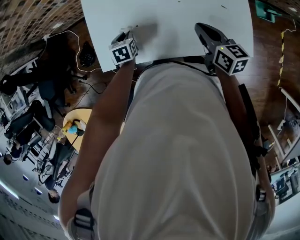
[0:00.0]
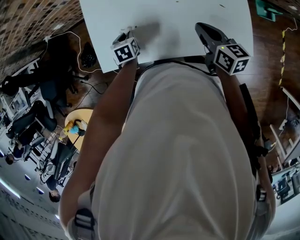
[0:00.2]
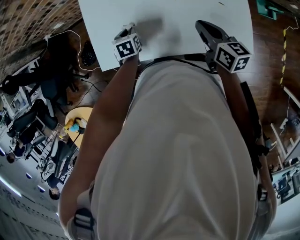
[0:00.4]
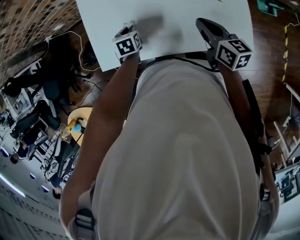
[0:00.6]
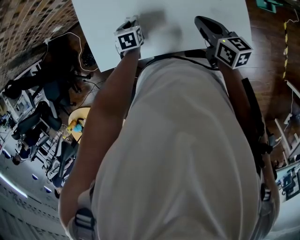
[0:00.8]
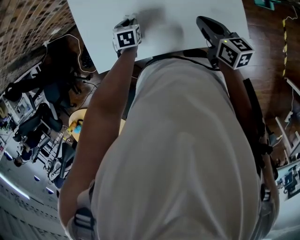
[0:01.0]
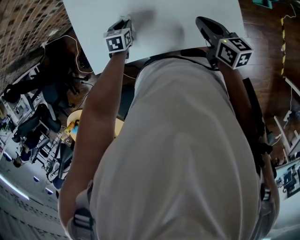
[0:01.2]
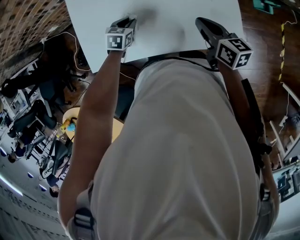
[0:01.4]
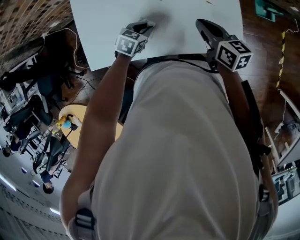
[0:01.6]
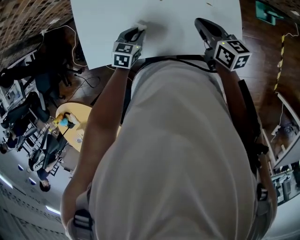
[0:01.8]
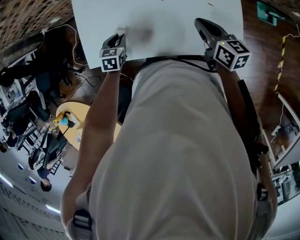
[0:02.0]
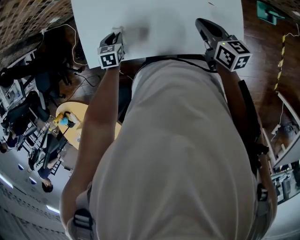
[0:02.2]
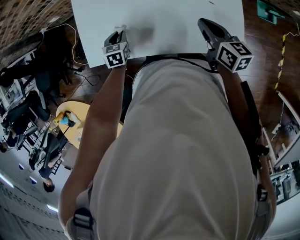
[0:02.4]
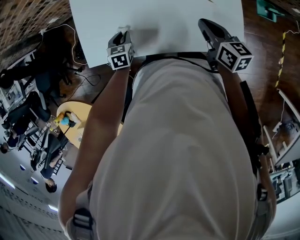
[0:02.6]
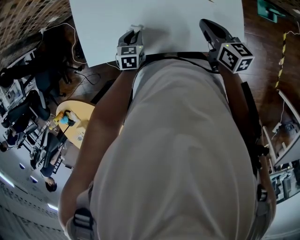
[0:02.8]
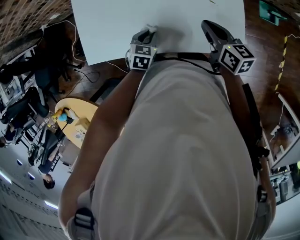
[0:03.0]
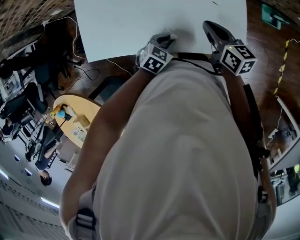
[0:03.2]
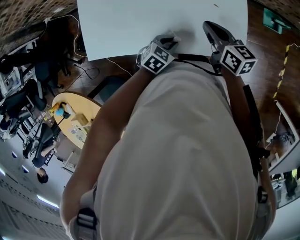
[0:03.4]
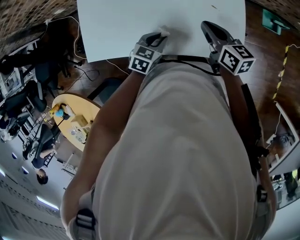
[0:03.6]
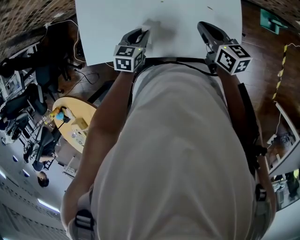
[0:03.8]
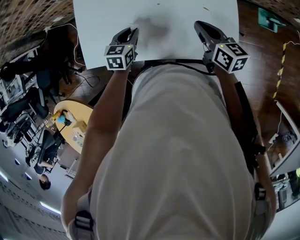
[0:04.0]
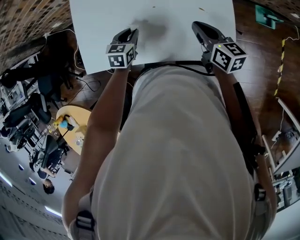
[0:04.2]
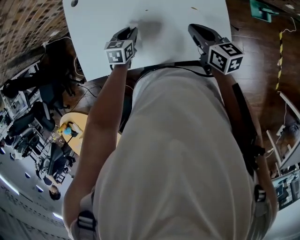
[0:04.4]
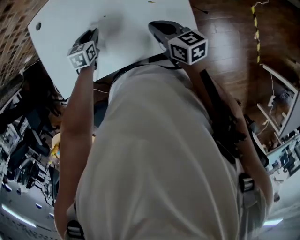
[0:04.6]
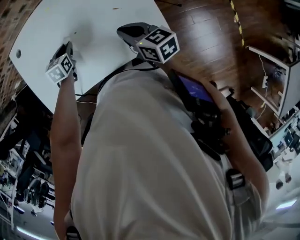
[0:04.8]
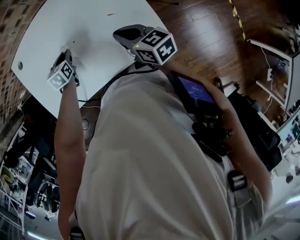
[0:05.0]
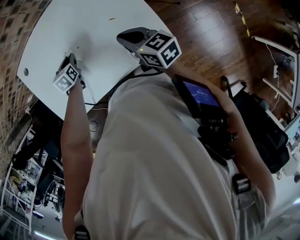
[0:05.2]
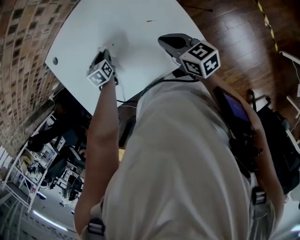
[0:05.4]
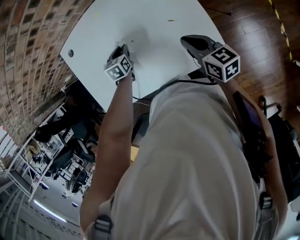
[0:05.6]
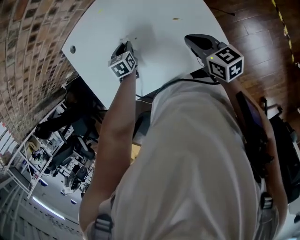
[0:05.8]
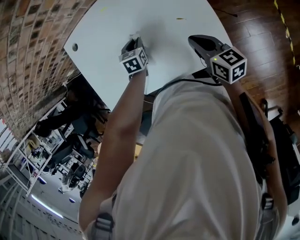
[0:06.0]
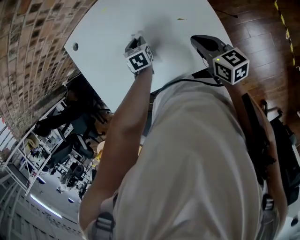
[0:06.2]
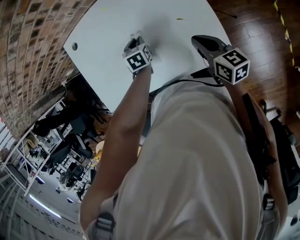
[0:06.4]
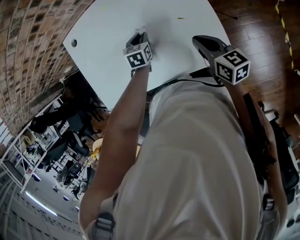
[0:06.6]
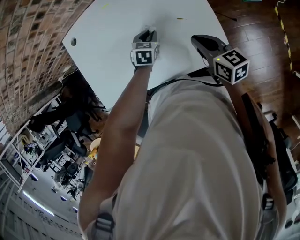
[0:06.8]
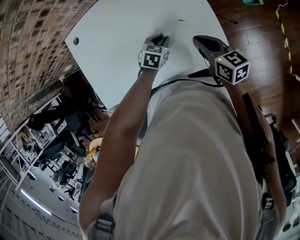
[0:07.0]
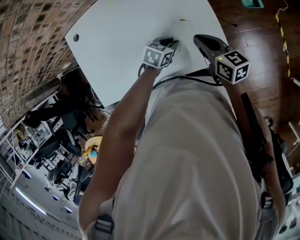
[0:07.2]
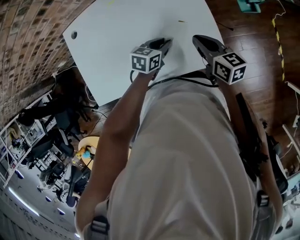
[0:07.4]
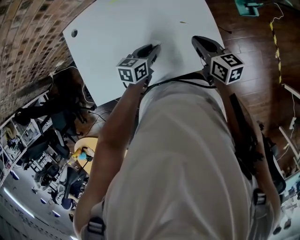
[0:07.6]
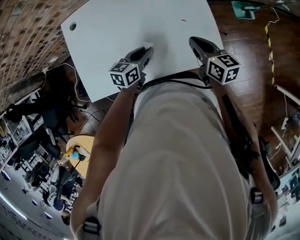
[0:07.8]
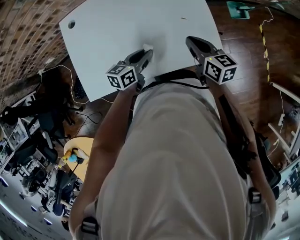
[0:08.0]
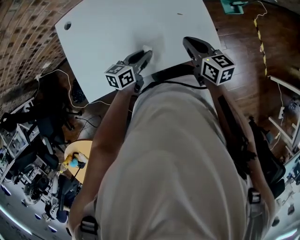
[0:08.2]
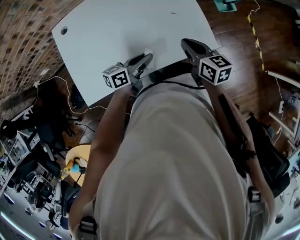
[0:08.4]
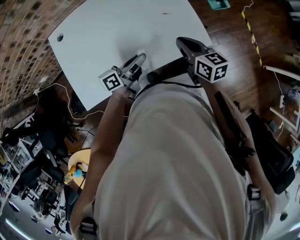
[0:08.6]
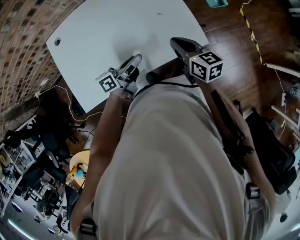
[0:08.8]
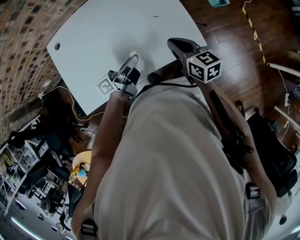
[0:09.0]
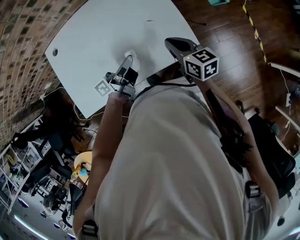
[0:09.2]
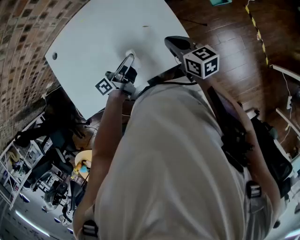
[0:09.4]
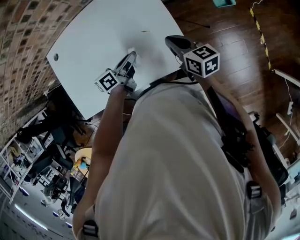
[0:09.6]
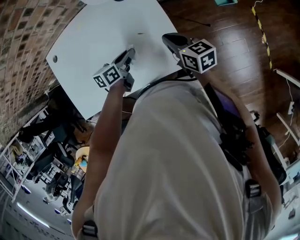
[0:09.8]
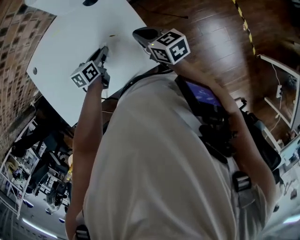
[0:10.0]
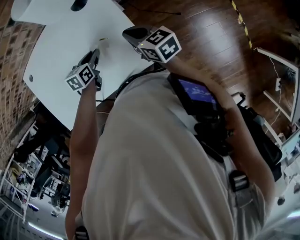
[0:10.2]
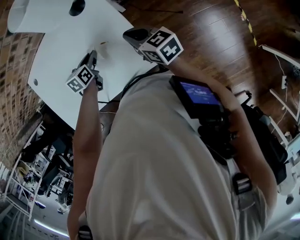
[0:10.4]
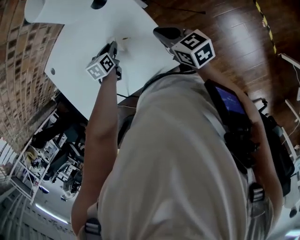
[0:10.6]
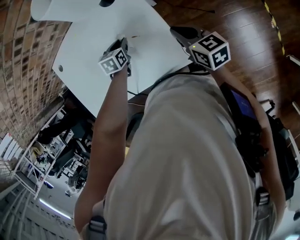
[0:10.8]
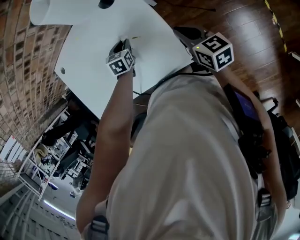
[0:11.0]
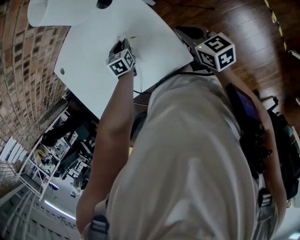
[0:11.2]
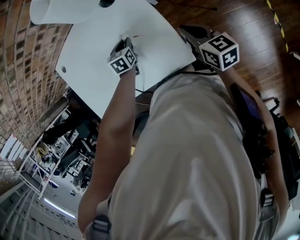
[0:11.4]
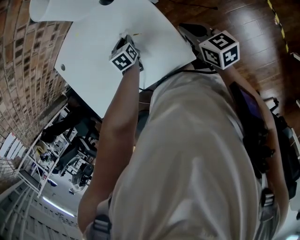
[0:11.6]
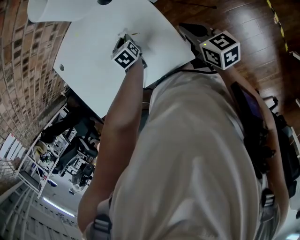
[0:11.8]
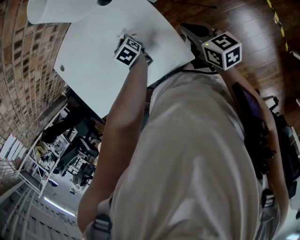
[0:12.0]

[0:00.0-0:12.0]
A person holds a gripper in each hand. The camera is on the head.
0:00.0 to 0:01.6: The right gripper moves roughly 10 cm, while the left gripper ends up roughly 20 cm from where it was, and changes its angle by roughly 40 degrees.
0:03.0 to 0:04.4: The left gripper heads forward, covering roughly 10 cm.
0:04.4 to 0:06.0: The left gripper is displaced to the right and forward by about 10 cm.
0:06.0 to 0:07.6: The left gripper changes place by roughly 15 cm, and rotates some 30 degrees.
0:07.6 to 0:09.0: The right gripper is displaced backward by roughly 10 cm. The left gripper is displaced backward and upward by approximately 10 cm, and angles its fingers upward, by roughly 40 degrees.
0:09.0 to 0:10.4: The right gripper moves forward and to the right, approximately 20 cm. Meanwhile the left gripper is displaced forward and downward by roughly 20 cm, and tilts its fingers some 60 degrees downward.
0:10.4 to 0:12.0: The left gripper rotates roughly 30 degrees. The right gripper moves to the right, roughly 5 cm.

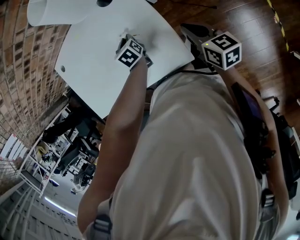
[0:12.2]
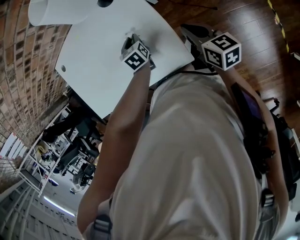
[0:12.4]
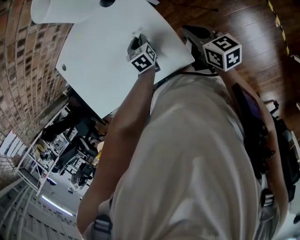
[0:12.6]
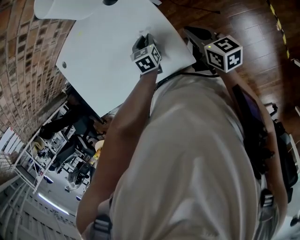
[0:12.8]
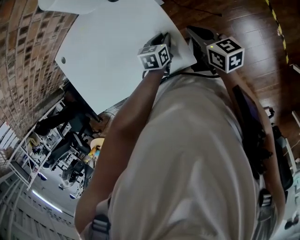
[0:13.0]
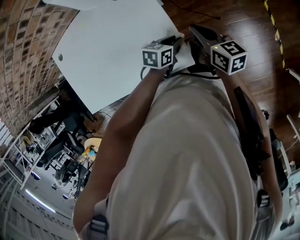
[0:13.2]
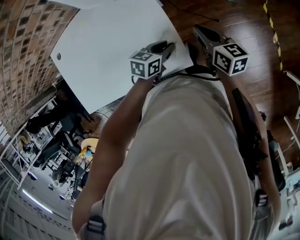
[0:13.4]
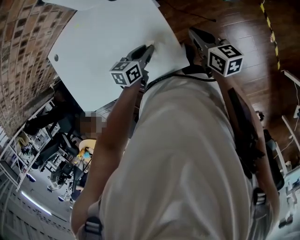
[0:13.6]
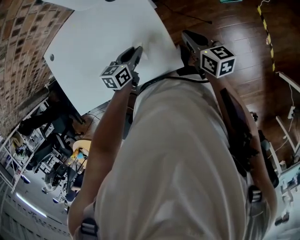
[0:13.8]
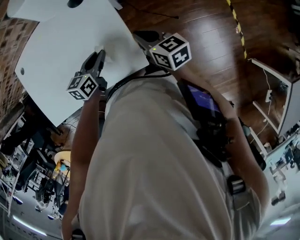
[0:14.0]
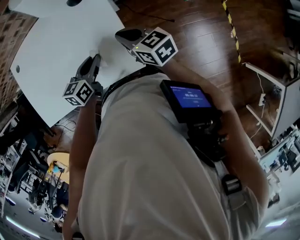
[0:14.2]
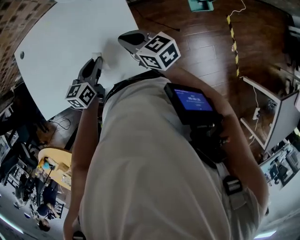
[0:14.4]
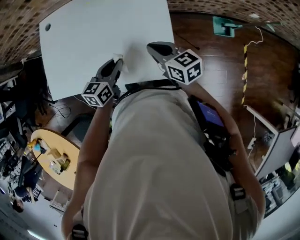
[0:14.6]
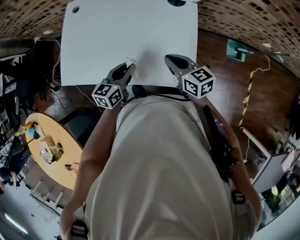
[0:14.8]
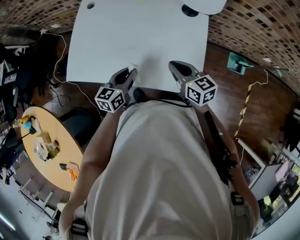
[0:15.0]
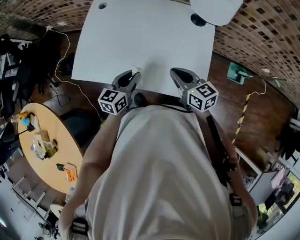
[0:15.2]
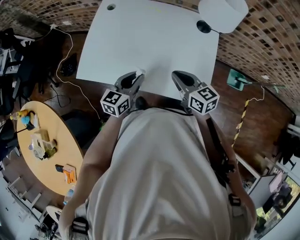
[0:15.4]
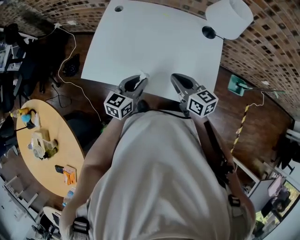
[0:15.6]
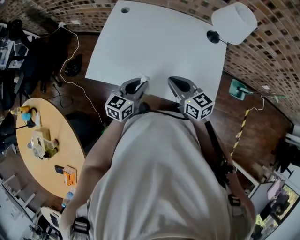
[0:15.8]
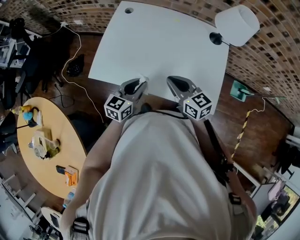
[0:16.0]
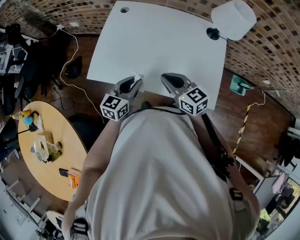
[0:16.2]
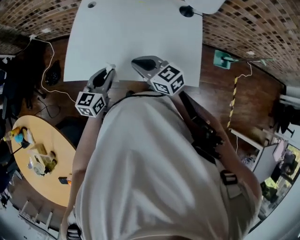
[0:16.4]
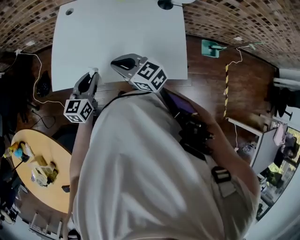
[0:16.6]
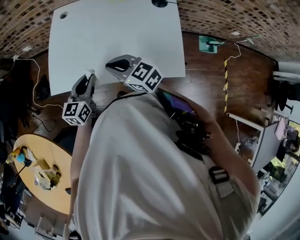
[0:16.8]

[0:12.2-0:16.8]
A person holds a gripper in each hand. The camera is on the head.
0:12.2 to 0:13.8: The left gripper changes its angle by roughly 40 degrees.
0:13.8 to 0:15.2: The left gripper shifts by about 25 cm, and turns by roughly 30 degrees; the right gripper moves some 30 cm, and changes its angle by some 40 degrees.
0:15.2 to 0:16.8: The left gripper shifts about 10 cm to the left; the right gripper shifts roughly 20 cm to the left.

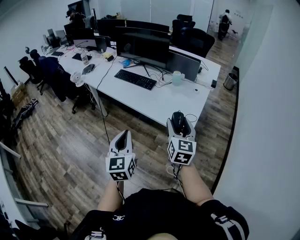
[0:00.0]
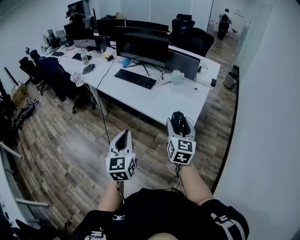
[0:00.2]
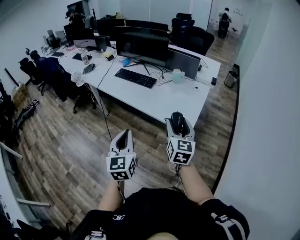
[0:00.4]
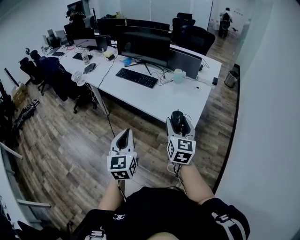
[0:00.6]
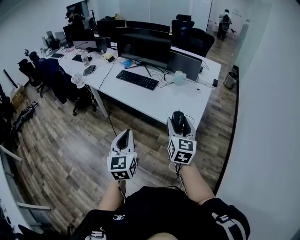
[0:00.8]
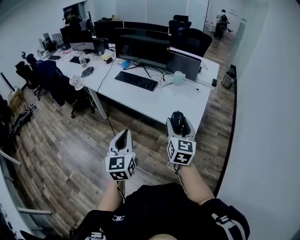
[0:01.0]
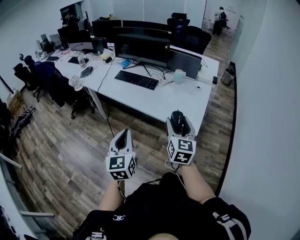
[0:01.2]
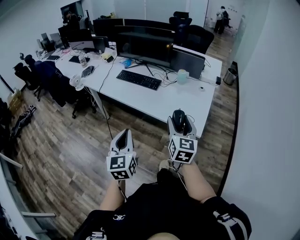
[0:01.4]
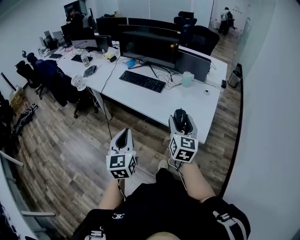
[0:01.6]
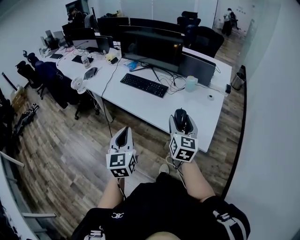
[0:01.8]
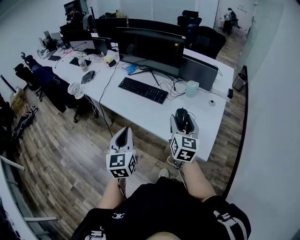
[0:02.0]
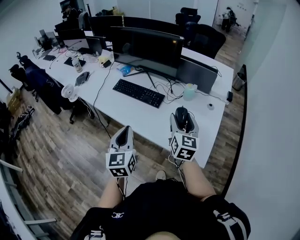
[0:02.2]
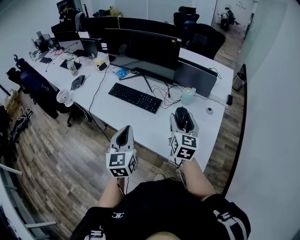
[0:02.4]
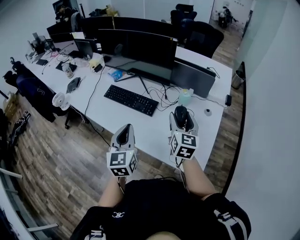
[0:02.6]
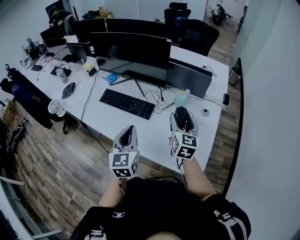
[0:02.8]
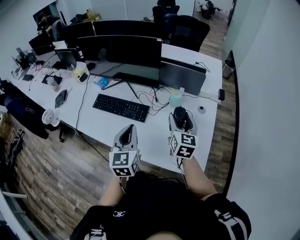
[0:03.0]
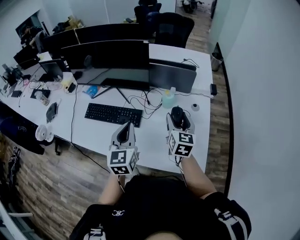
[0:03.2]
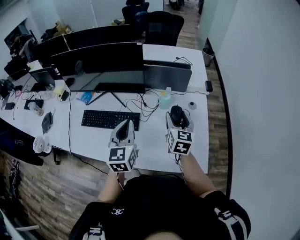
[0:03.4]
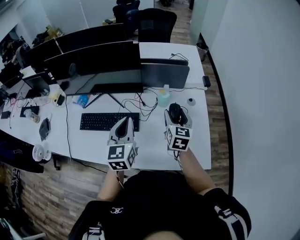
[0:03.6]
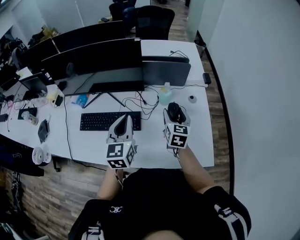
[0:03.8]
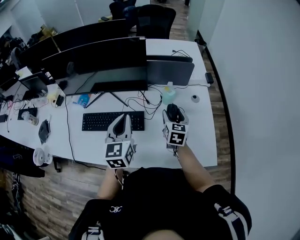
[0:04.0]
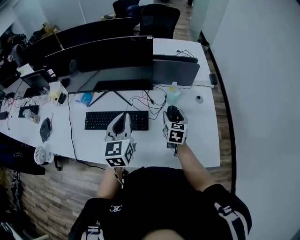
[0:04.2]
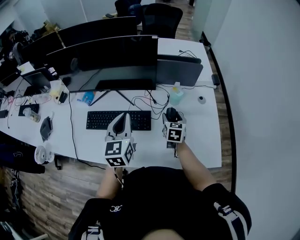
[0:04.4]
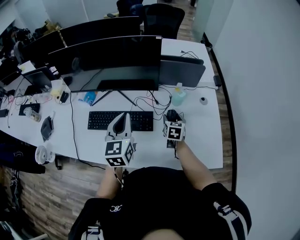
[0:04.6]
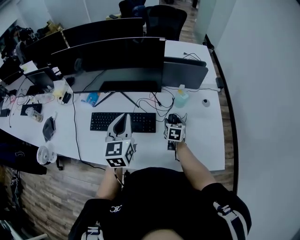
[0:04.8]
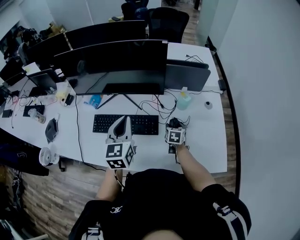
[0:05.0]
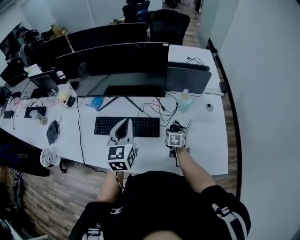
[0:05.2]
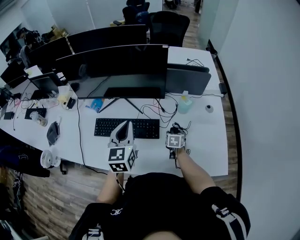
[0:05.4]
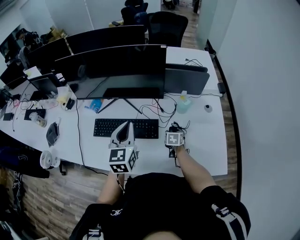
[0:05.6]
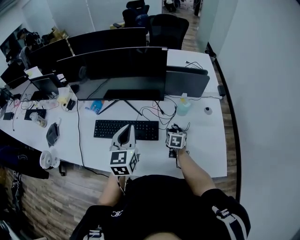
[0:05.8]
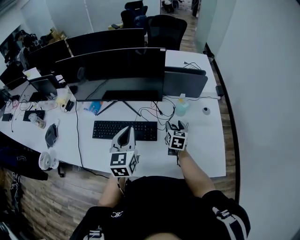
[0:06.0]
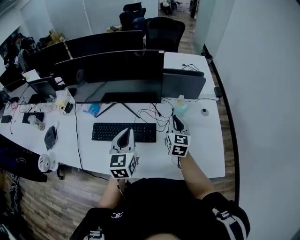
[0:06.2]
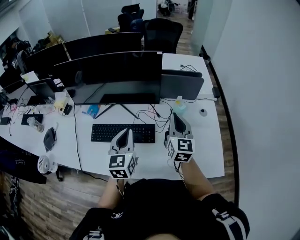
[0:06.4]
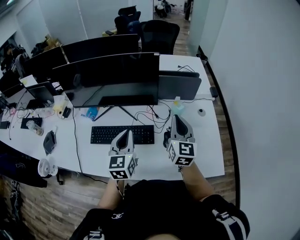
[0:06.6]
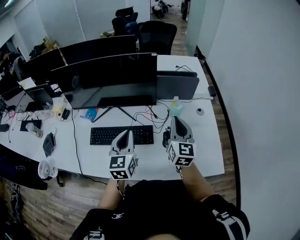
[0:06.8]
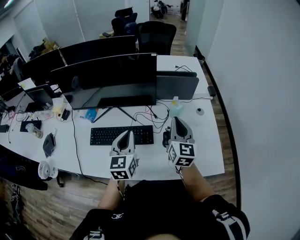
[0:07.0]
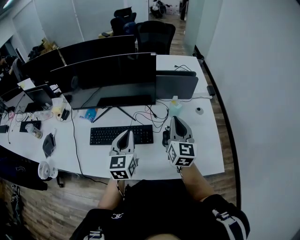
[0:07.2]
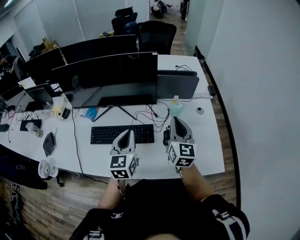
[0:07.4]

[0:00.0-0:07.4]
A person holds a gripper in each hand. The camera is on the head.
0:00.0 to 0:01.4: The left gripper goes roughly 10 cm to the left and forward. The right gripper goes some 10 cm to the left.
0:01.4 to 0:03.0: Both grippers are carried forward, approximately 50 cm.
0:03.0 to 0:04.4: The left gripper shifts some 20 cm to the left and forward, while the right gripper goes roughly 25 cm downward, to the left and forward, and swivels approximately 20 degrees.
0:04.4 to 0:06.0: The right gripper reaches some 15 cm downward, then returns.
0:06.0 to 0:07.4: The right gripper heads upward and backward, covering about 20 cm, changes its angle by some 30 degrees, and closes up.
